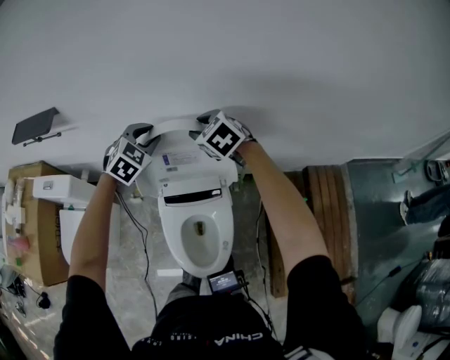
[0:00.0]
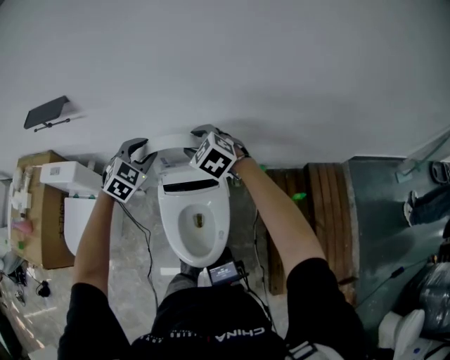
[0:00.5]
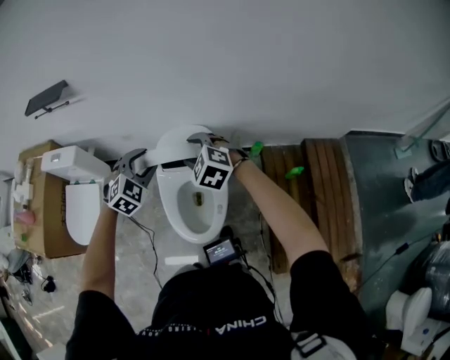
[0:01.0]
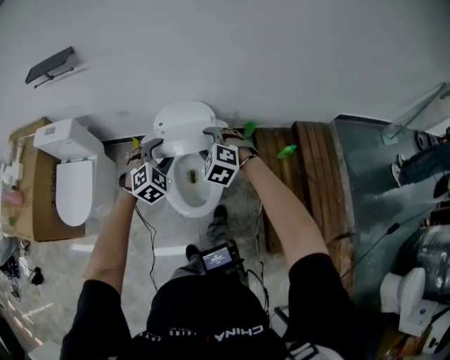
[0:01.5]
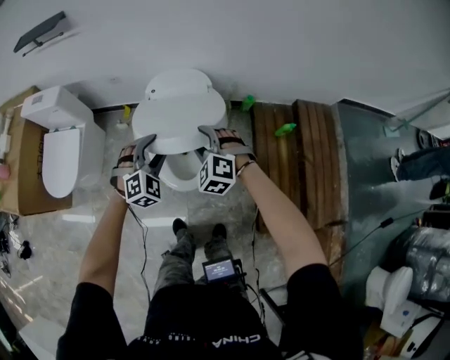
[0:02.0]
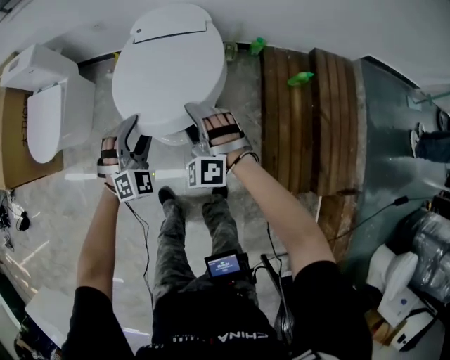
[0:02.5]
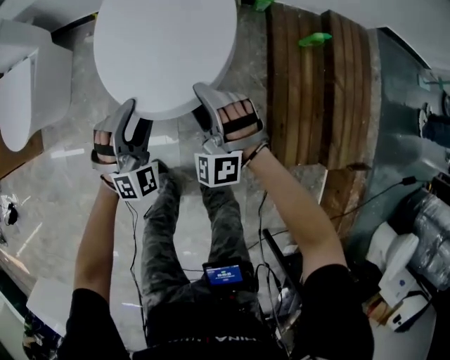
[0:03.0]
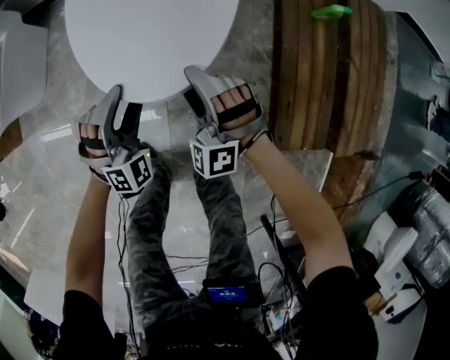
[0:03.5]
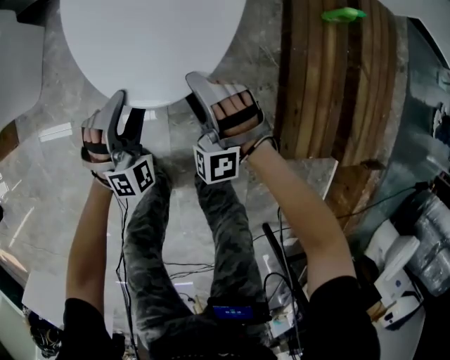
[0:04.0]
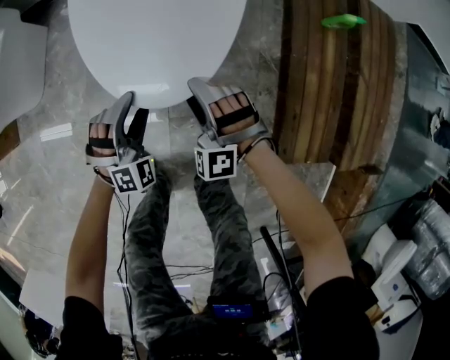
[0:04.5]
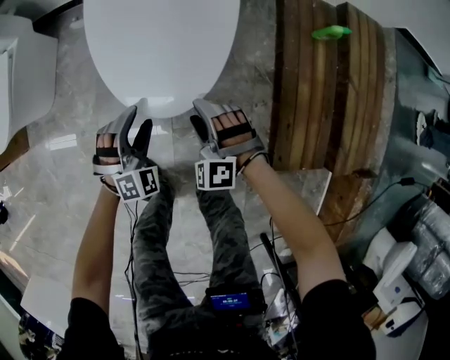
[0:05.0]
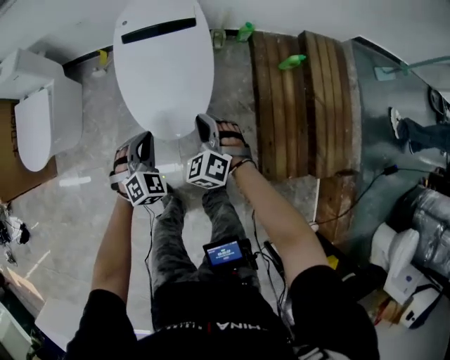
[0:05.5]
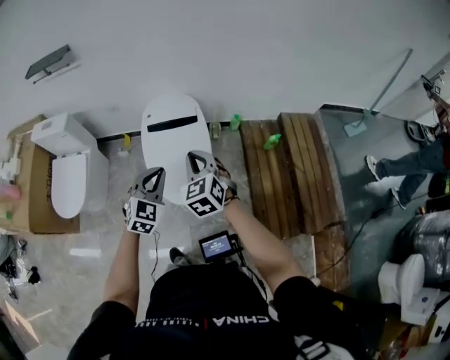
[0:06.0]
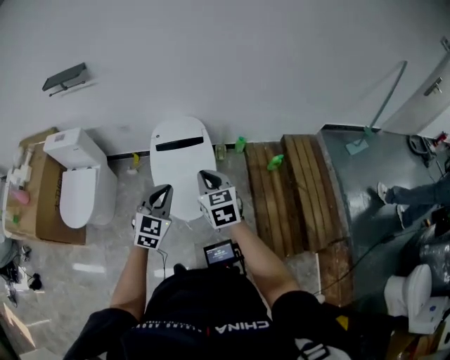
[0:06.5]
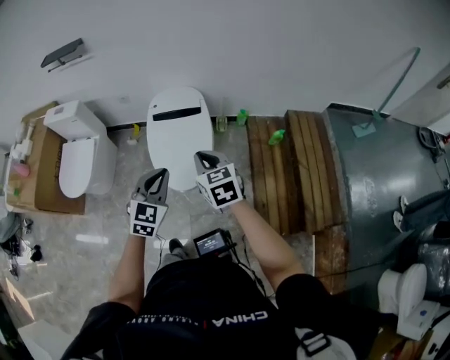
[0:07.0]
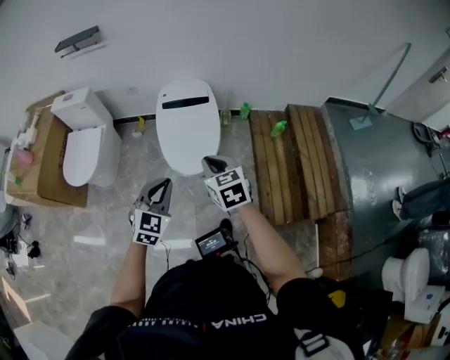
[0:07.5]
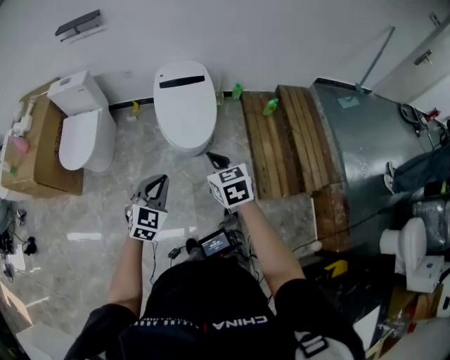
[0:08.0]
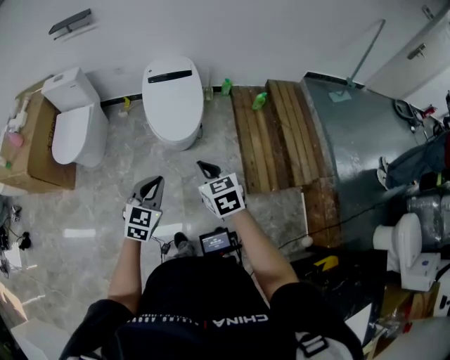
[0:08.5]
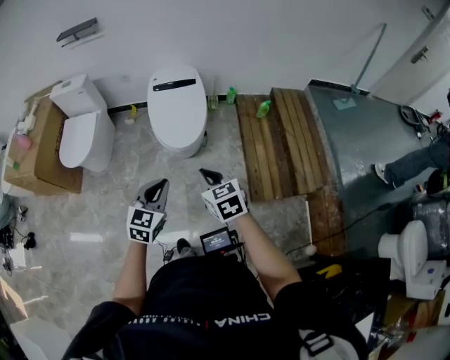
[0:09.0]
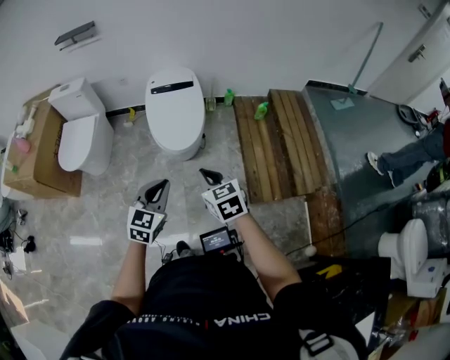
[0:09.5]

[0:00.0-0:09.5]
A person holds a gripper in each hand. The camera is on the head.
0:00.0 to 0:02.0: The two grippers travel together, backward, about 40 cm. The right gripper turns by some 30 degrees.
0:02.0 to 0:04.0: Both grippers move downward, about 40 cm. The right gripper rotates roughly 20 degrees.
0:04.0 to 0:05.5: The grippers both shift upward by some 25 cm. The right gripper turns by roughly 30 degrees, and closes; the left gripper turns by approximately 20 degrees, and closes its fingers.
0:05.5 to 0:07.5: Both grippers move upward and backward, approximately 35 cm. The right gripper rotates around the line of its fingers by approximately 40 degrees, clockwise from behind; the left gripper rotates some 30 degrees.
0:07.5 to 0:09.5: The two grippers go some 20 cm backward.

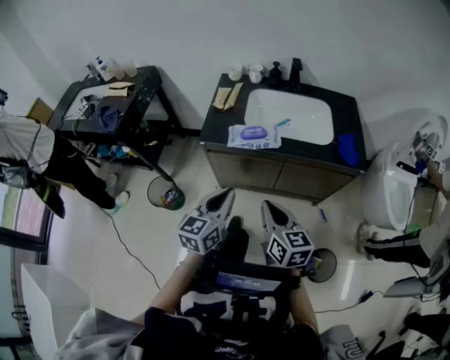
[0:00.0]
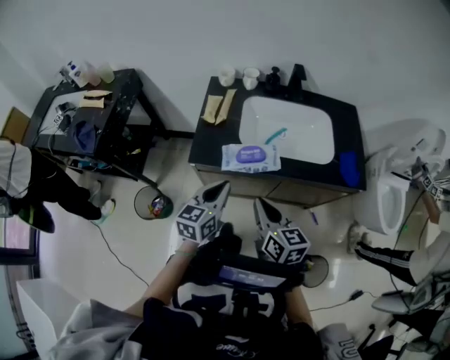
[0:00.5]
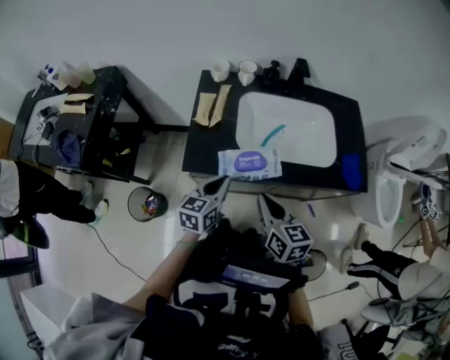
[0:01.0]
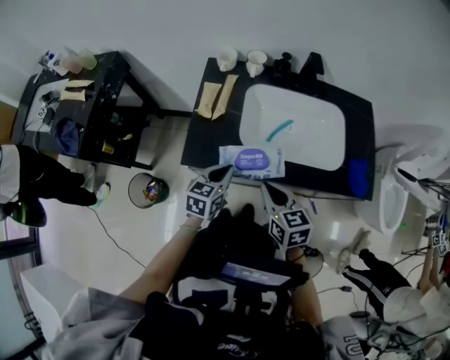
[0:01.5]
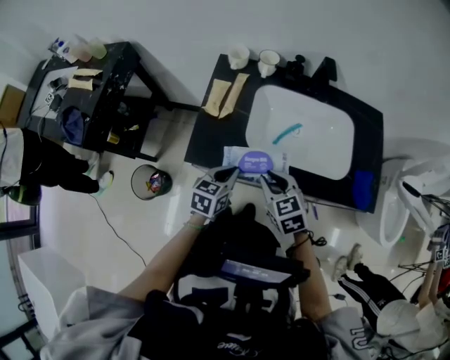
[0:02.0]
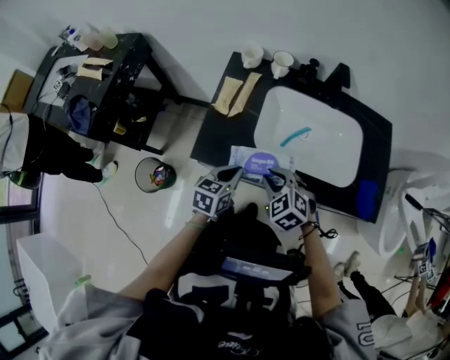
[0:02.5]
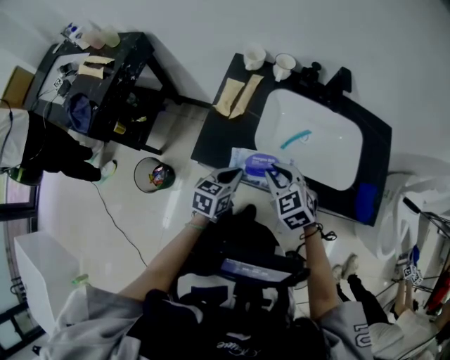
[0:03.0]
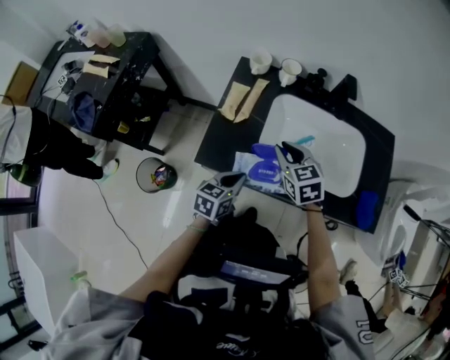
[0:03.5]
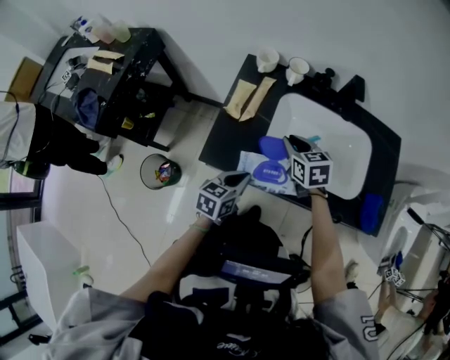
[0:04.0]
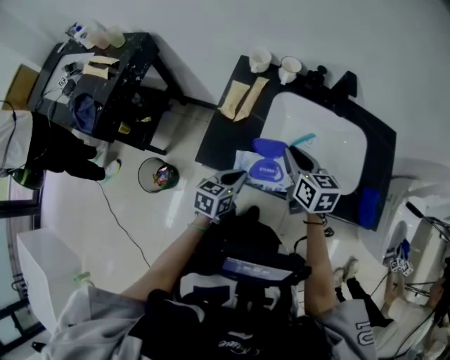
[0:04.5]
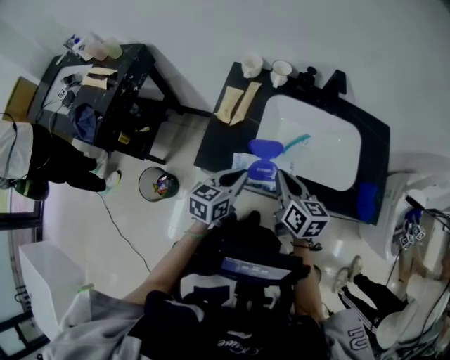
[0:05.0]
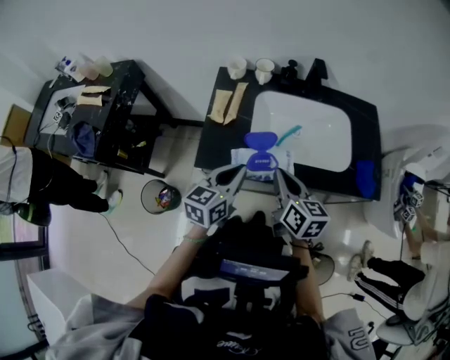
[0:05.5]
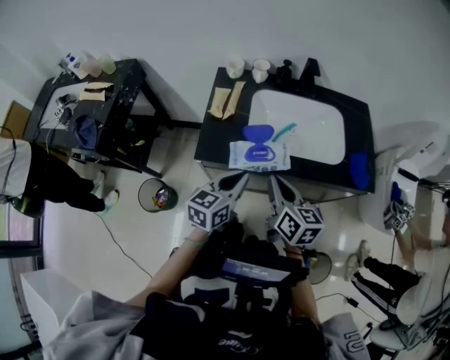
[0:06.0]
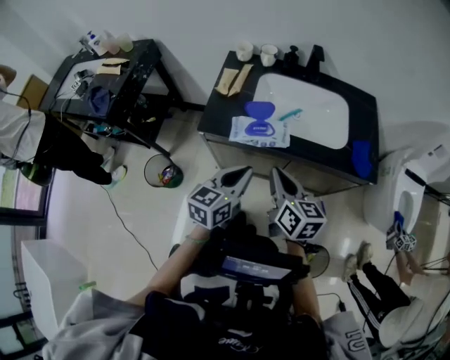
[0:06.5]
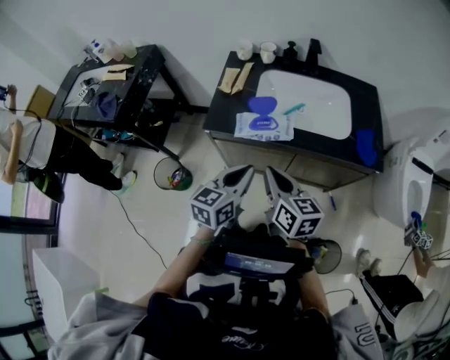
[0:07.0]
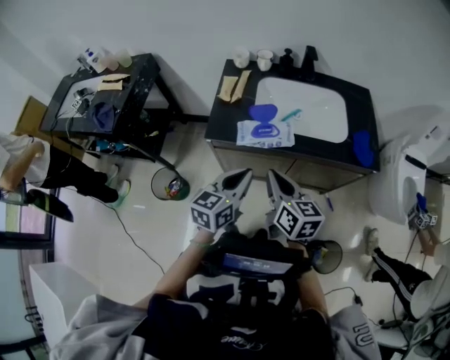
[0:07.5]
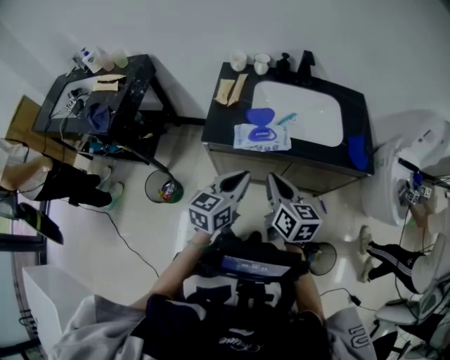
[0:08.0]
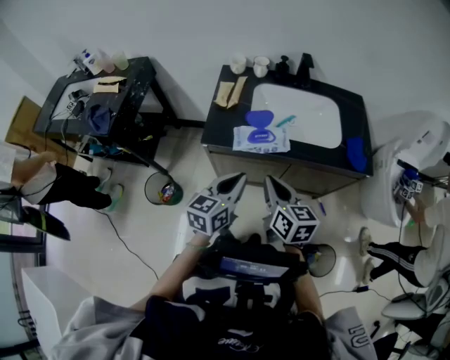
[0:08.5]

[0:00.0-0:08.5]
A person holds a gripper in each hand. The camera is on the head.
0:00.0 to 0:02.0: The left gripper heads forward and downward, covering roughly 30 cm, and changes its angle by some 20 degrees. Meanwhile the right gripper heads forward, covering approximately 30 cm, and turns by some 40 degrees.
0:02.0 to 0:04.0: The right gripper is displaced forward by approximately 15 cm.
0:04.0 to 0:06.5: The left gripper is displaced backward and upward by roughly 20 cm. The right gripper travels backward by some 30 cm, and rotates some 30 degrees.
0:06.5 to 0:08.5: The left gripper ends up about 5 cm from where it was, while the right gripper moves some 5 cm.

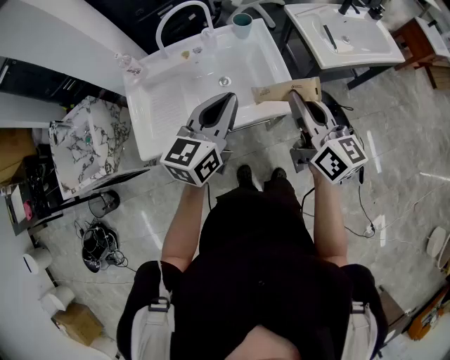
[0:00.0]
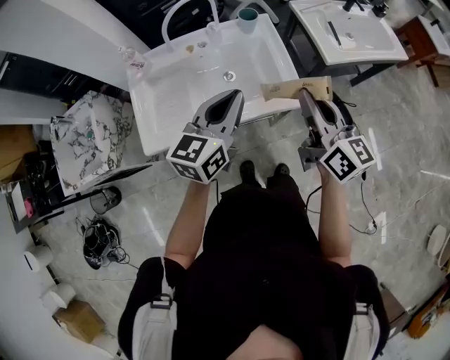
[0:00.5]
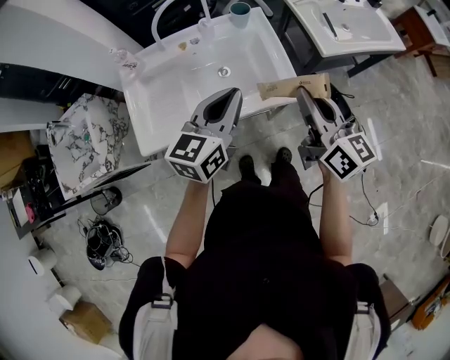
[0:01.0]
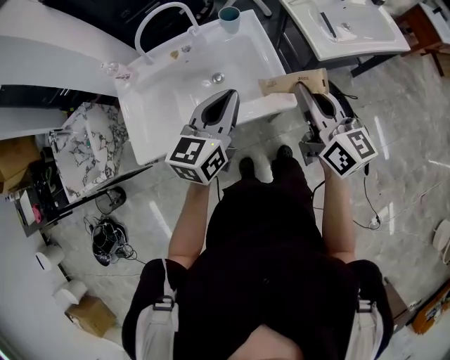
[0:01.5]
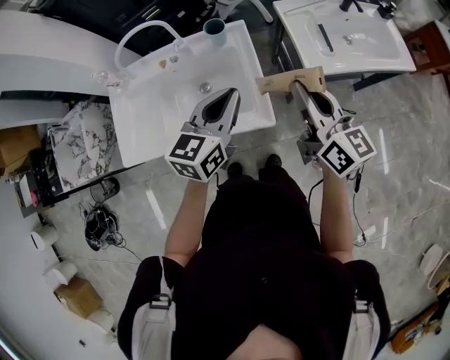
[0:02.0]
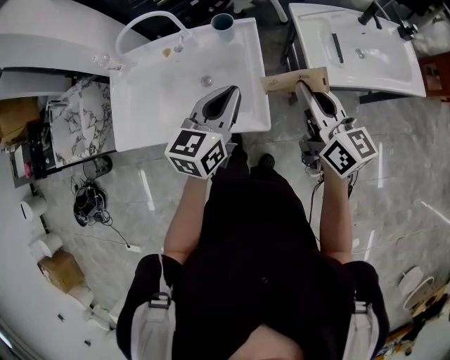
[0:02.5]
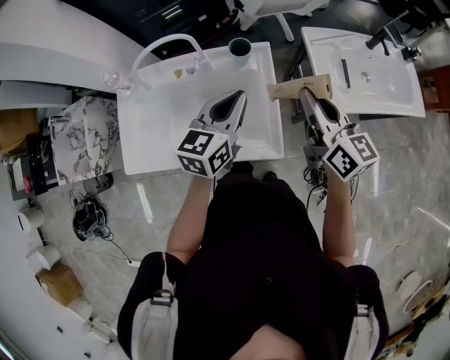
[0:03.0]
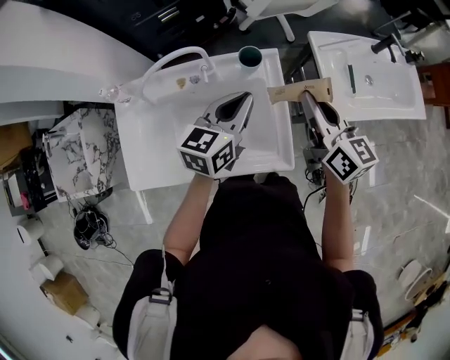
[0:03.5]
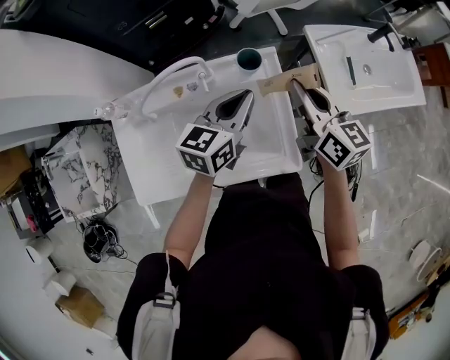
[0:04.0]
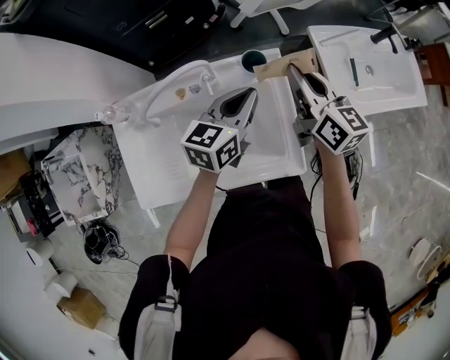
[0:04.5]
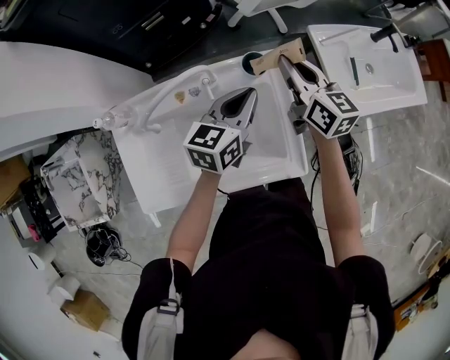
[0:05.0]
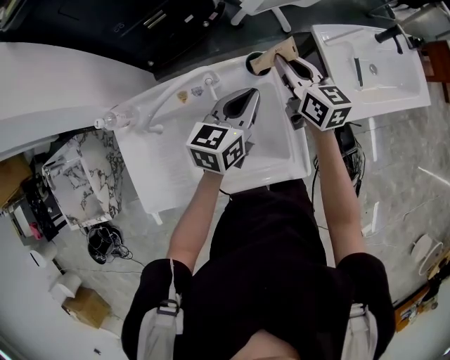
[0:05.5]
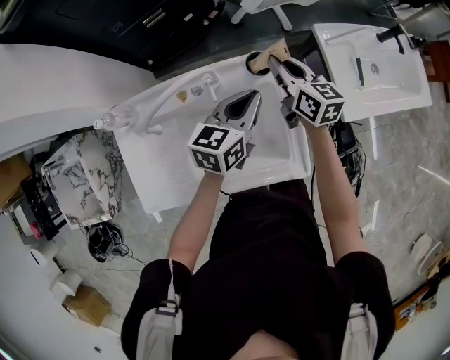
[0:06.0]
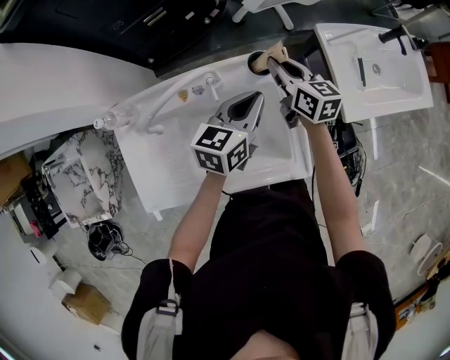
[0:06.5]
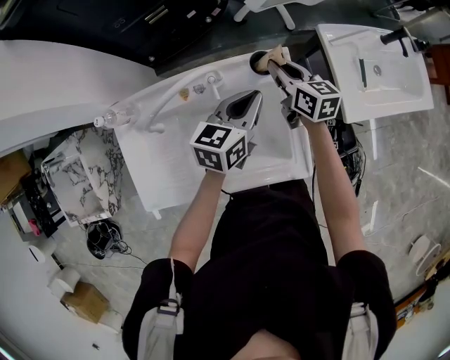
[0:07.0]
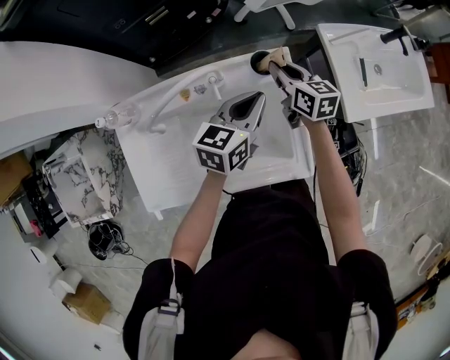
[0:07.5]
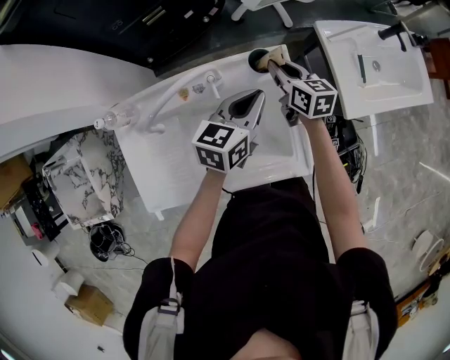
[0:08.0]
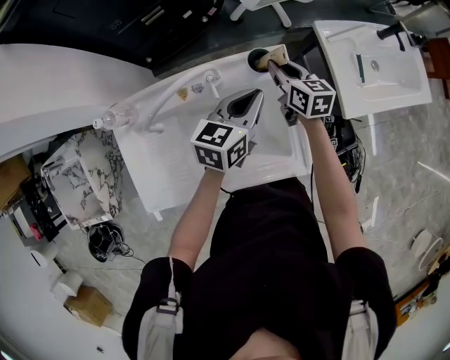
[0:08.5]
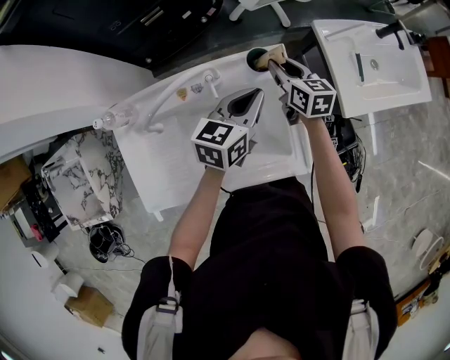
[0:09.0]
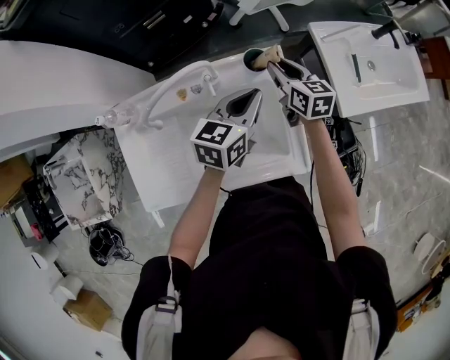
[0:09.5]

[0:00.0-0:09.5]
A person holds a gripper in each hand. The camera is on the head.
0:00.0 to 0:02.0: The grippers both shift to the right and forward by approximately 20 cm.
0:02.0 to 0:04.0: The two grippers go some 20 cm forward and to the left.
0:04.0 to 0:05.5: The right gripper moves forward, downward and to the left, approximately 15 cm.
0:05.5 to 0:07.5: The right gripper is displaced downward by about 10 cm.
0:07.5 to 0:09.5: The grippers stay close to where they were, moving slightly.
